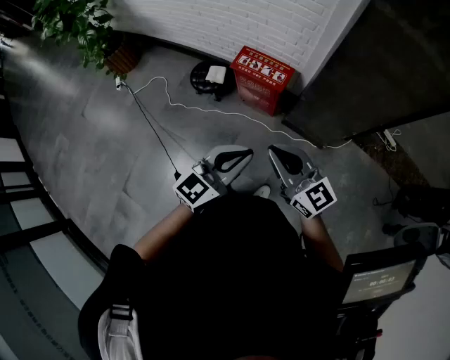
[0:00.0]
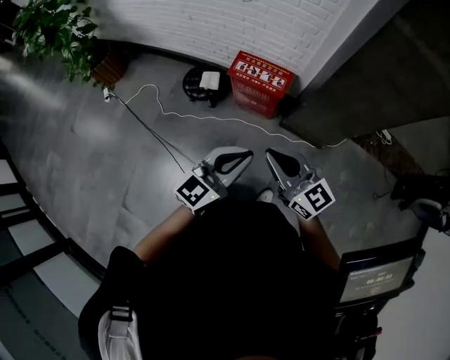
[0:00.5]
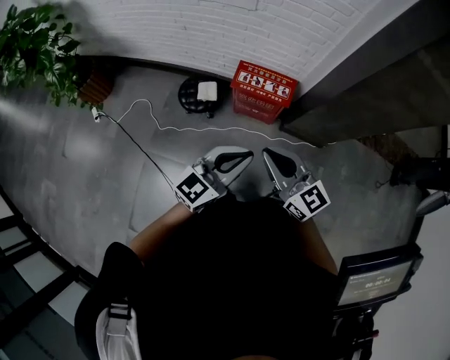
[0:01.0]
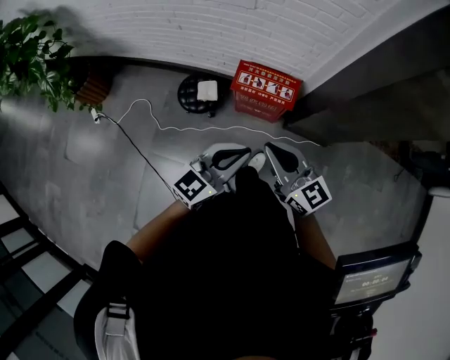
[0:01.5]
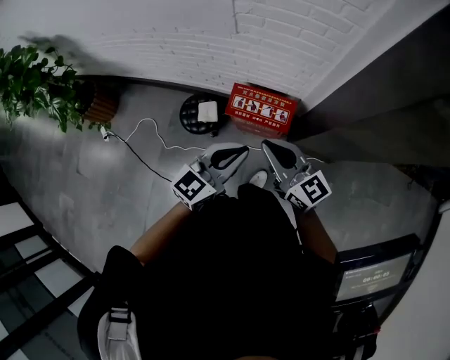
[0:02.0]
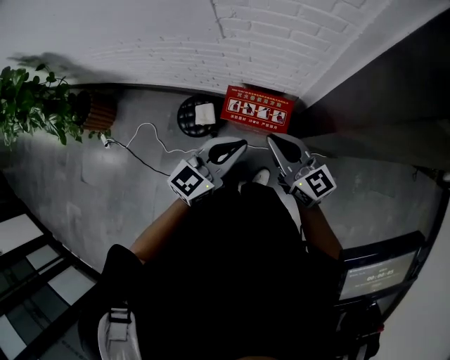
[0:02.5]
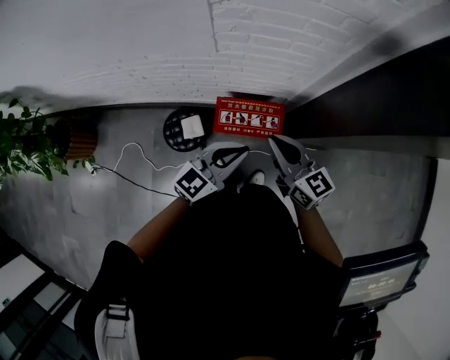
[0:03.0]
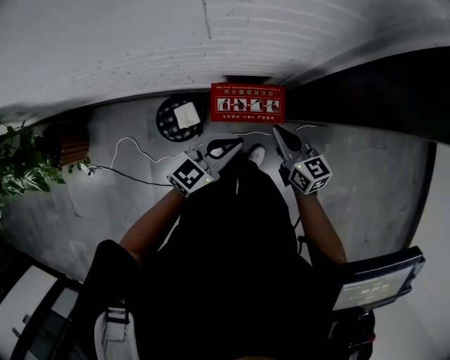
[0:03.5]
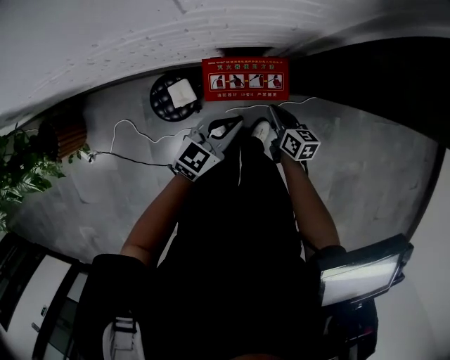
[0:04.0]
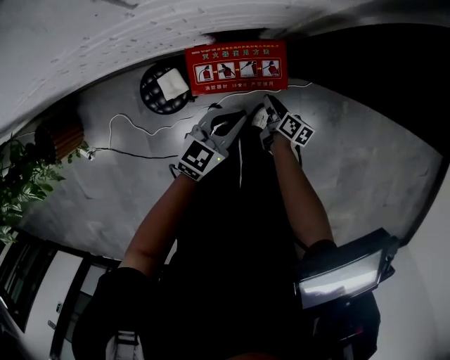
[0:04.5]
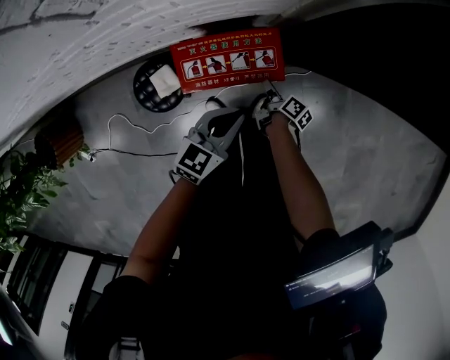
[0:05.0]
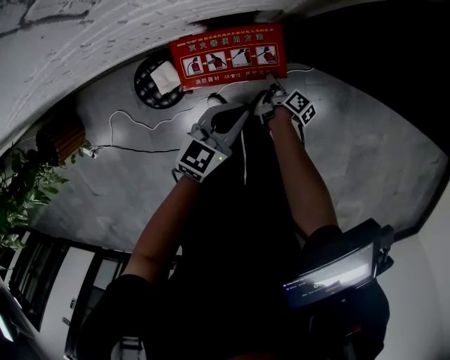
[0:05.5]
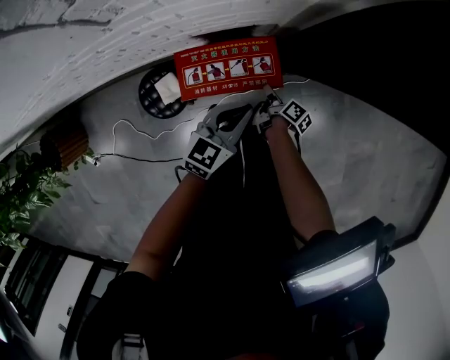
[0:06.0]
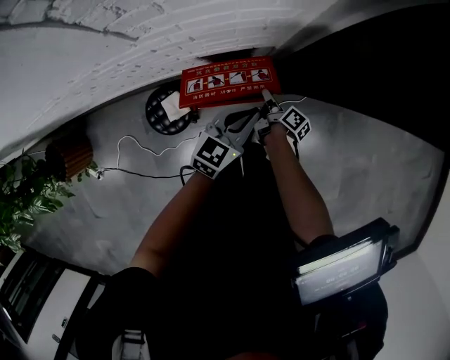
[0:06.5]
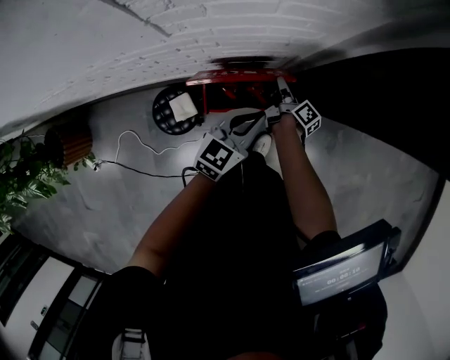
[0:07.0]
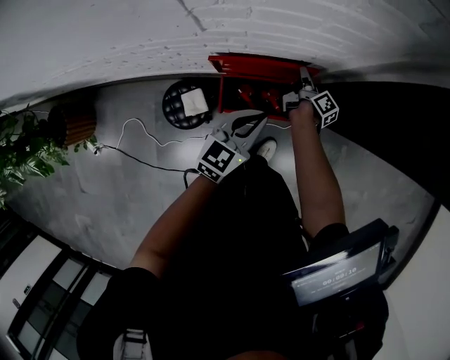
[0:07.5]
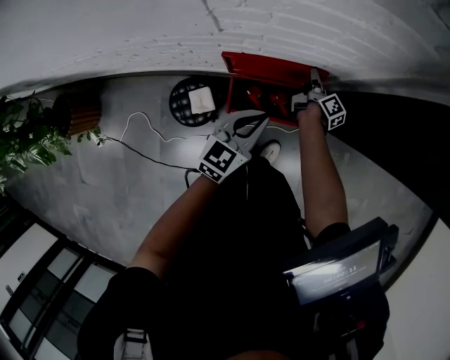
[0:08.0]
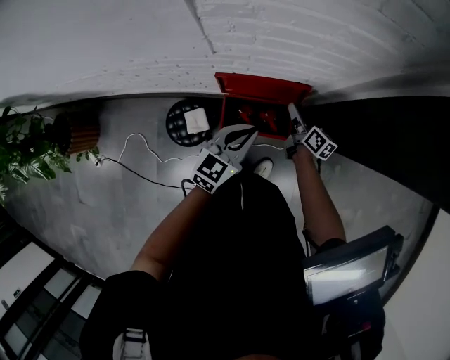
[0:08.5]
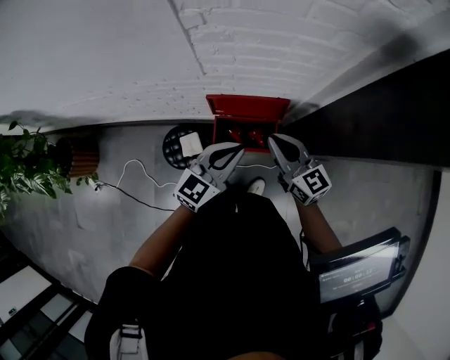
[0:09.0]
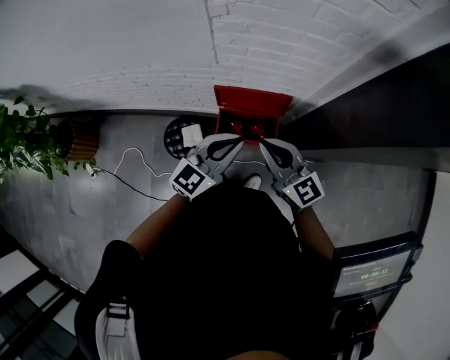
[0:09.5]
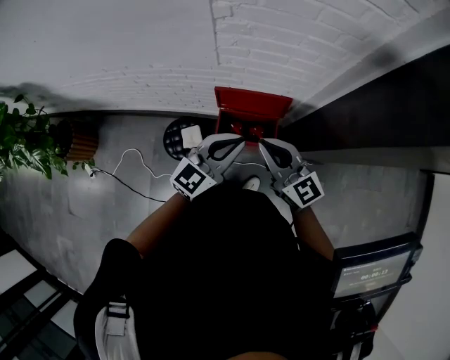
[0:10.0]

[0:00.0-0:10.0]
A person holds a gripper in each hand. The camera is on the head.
0:00.0 to 0:02.0: The left gripper is displaced forward by roughly 35 cm. Meanwhile the right gripper heads forward and to the left, covering approximately 35 cm.
0:02.0 to 0:04.0: The two grippers go roughly 30 cm downward and forward. The left gripper rotates roughly 20 degrees. The right gripper tilts its fingers about 30 degrees downward.
0:04.0 to 0:06.0: The right gripper moves downward, approximately 20 cm, rolls clockwise, seen from behind, by approximately 50 degrees, and opens up. The left gripper shifts some 10 cm to the right and downward.
0:06.0 to 0:08.0: The right gripper is displaced forward and upward by approximately 25 cm, and turns by about 20 degrees. Meanwhile the left gripper moves to the left and upward, some 15 cm.
0:08.0 to 0:10.0: The right gripper goes some 50 cm upward and backward, rotates around the line of its fingers by roughly 70 degrees, counterclockwise from behind, and opens, then closes again; the left gripper heads upward and backward, covering roughly 20 cm.

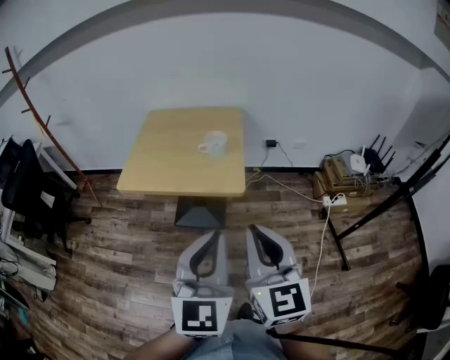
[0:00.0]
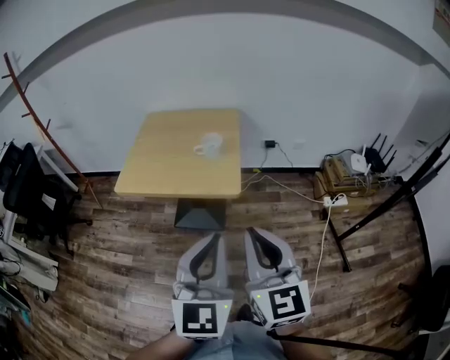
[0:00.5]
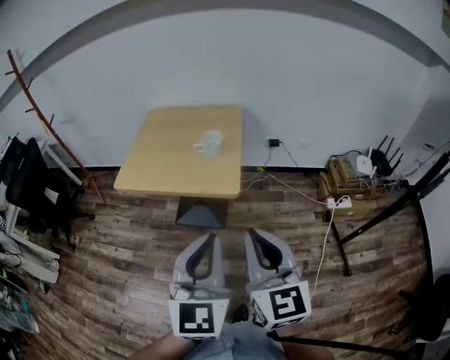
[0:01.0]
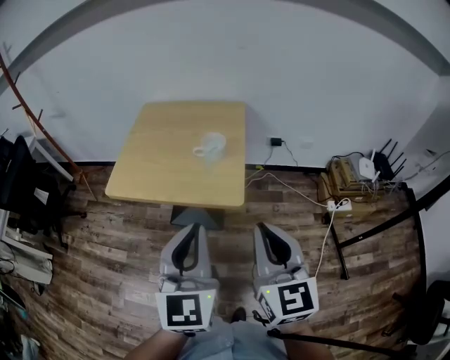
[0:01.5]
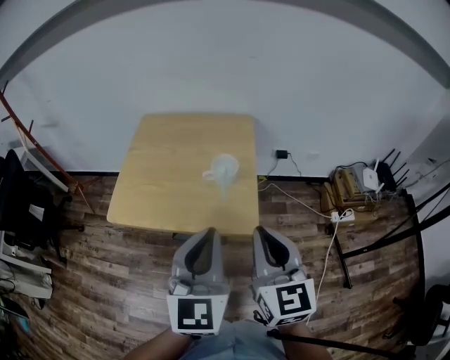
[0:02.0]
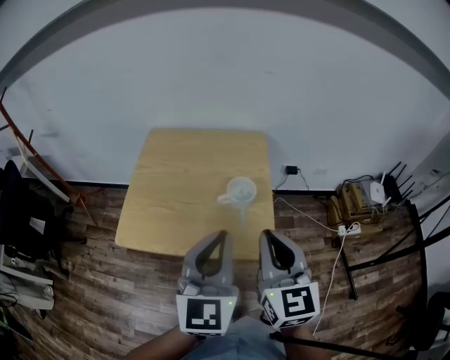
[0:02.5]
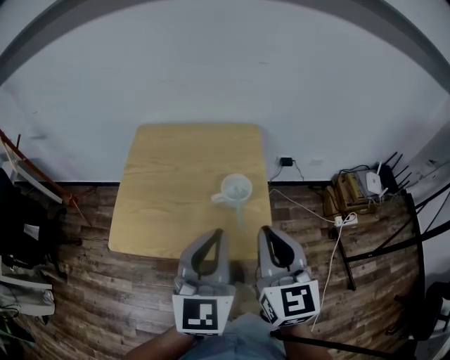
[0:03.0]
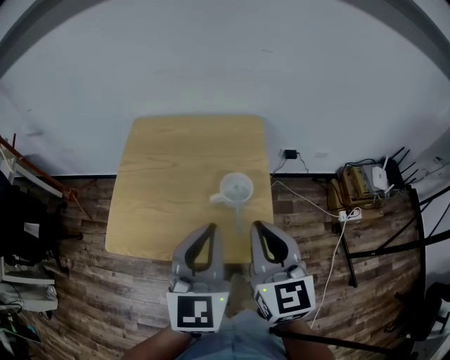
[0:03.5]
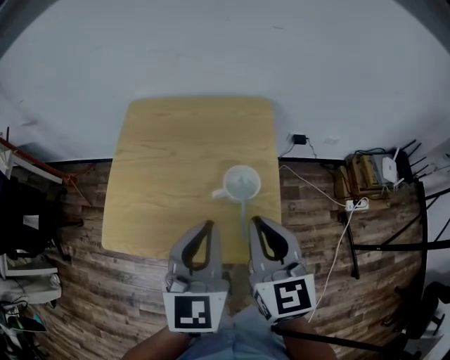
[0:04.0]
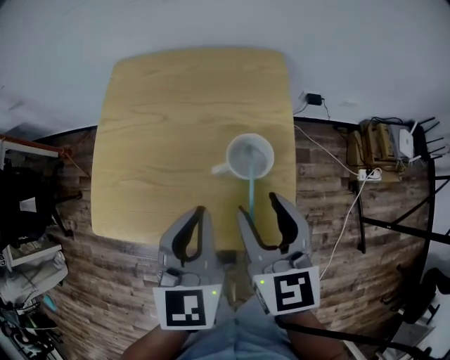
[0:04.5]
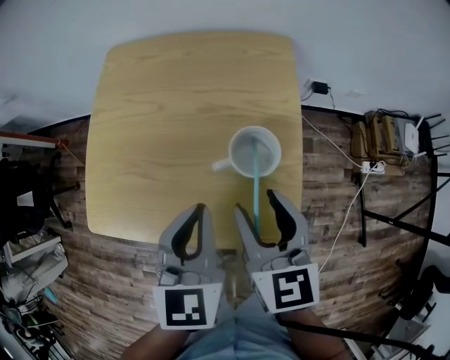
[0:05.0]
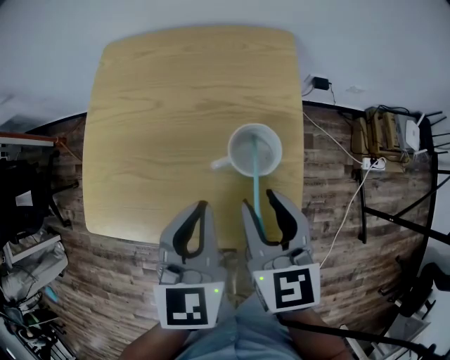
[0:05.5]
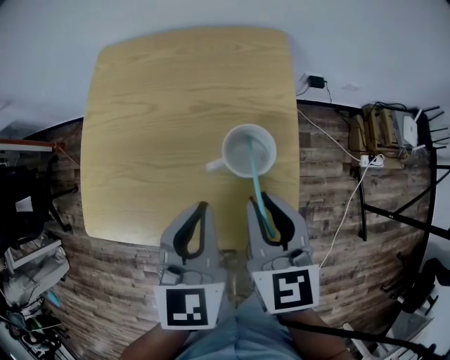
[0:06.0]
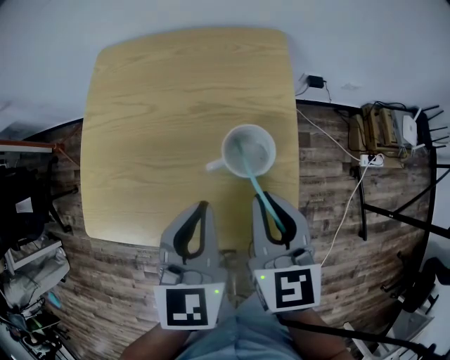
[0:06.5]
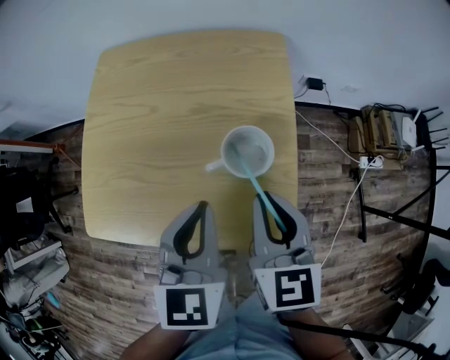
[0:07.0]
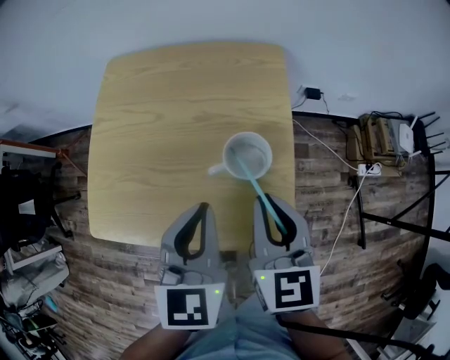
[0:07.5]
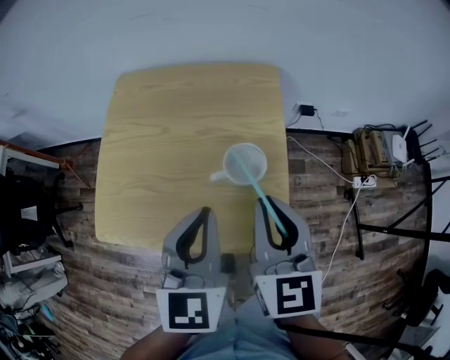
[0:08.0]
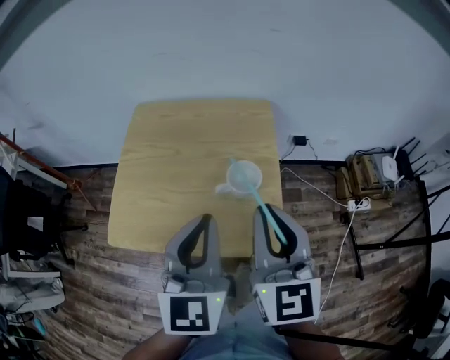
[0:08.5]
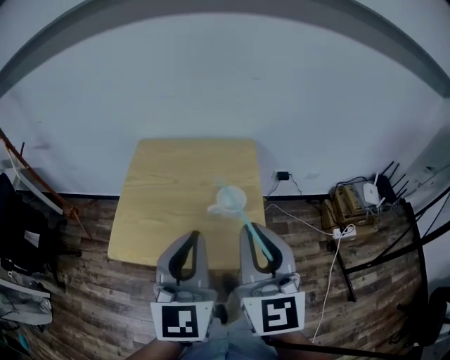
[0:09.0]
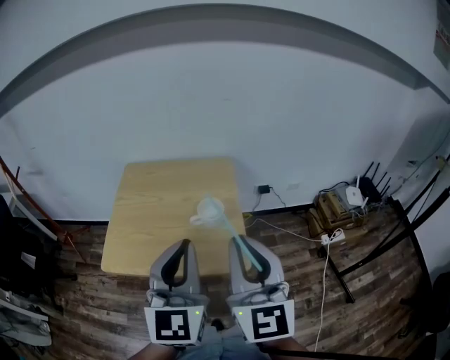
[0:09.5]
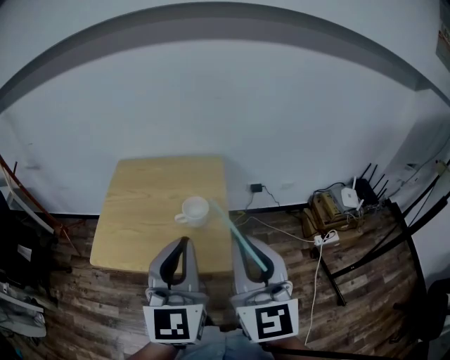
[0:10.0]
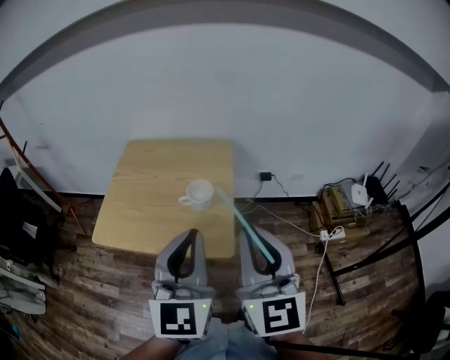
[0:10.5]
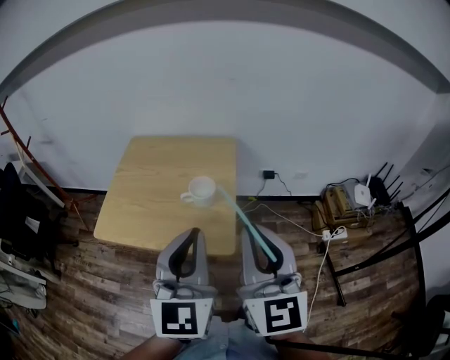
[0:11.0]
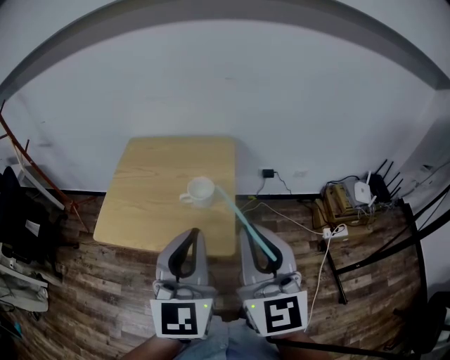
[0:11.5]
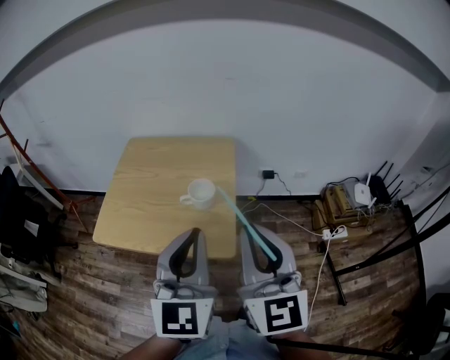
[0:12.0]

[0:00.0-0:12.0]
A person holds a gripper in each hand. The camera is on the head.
0:00.0 to 0:02.0: Both grippers move forward, roughly 20 cm.
0:02.0 to 0:04.0: The two grippers go approximately 15 cm forward.
0:04.0 to 0:06.0: Both grippers travel together downward, approximately 10 cm. The right gripper opens, then closes once more.
0:06.0 to 0:08.0: Both grippers move upward, about 5 cm.
0:08.0 to 0:10.0: The right gripper moves backward, upward and to the right, about 25 cm, and turns by about 30 degrees, while the left gripper heads upward, backward and to the right, covering about 20 cm, and swivels approximately 20 degrees.
0:10.0 to 0:12.0: The grippers stay close to where they were, moving slightly.

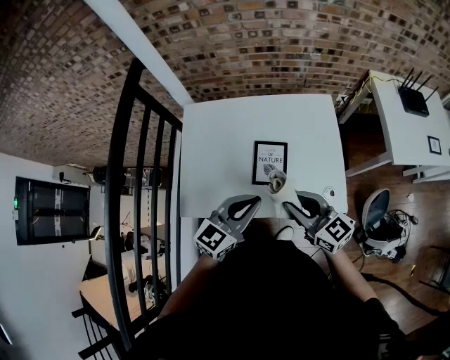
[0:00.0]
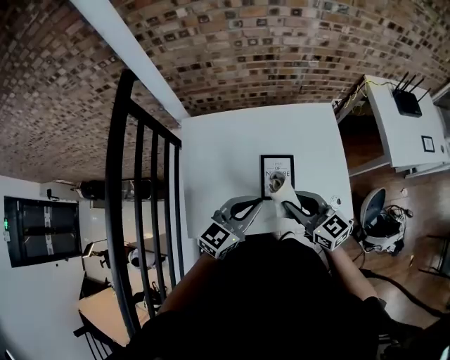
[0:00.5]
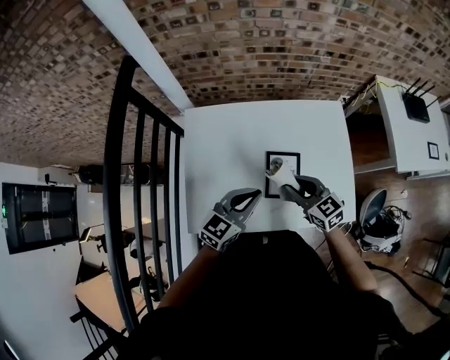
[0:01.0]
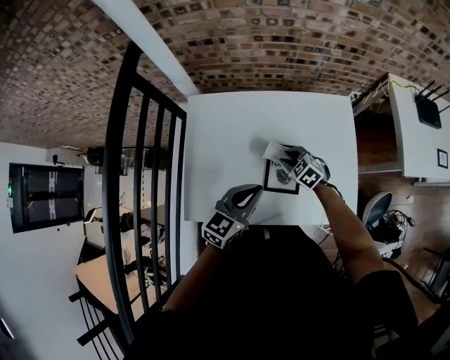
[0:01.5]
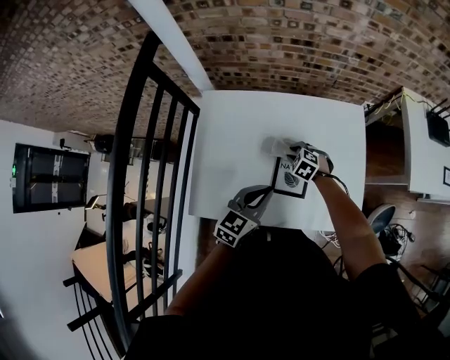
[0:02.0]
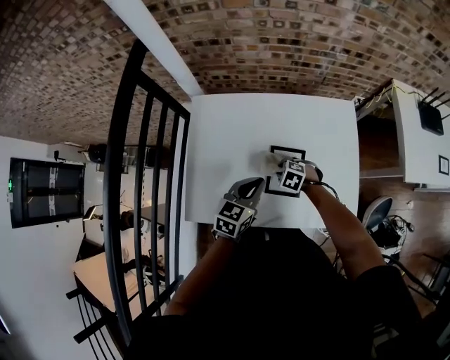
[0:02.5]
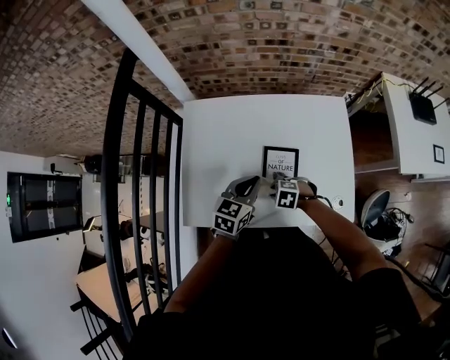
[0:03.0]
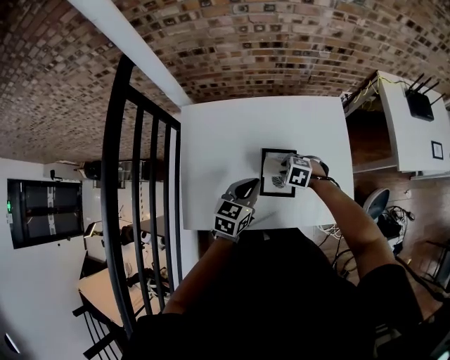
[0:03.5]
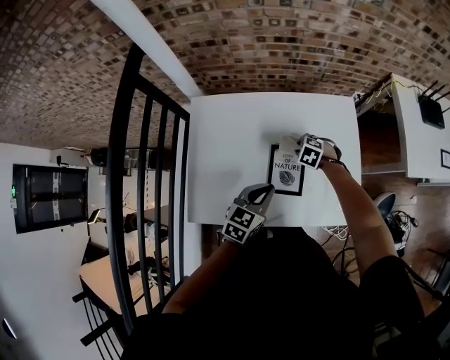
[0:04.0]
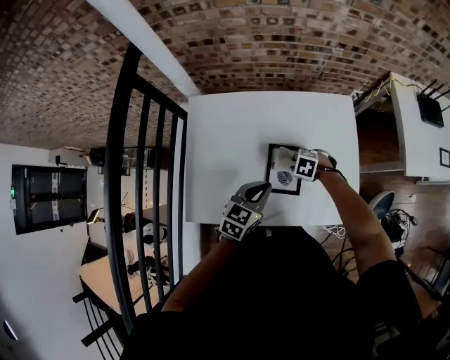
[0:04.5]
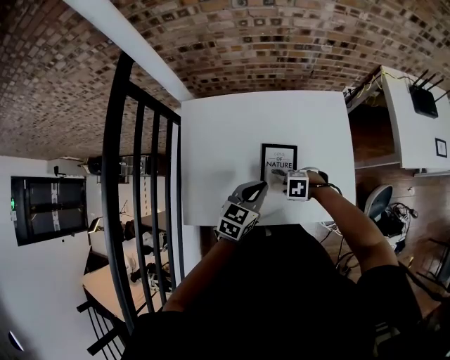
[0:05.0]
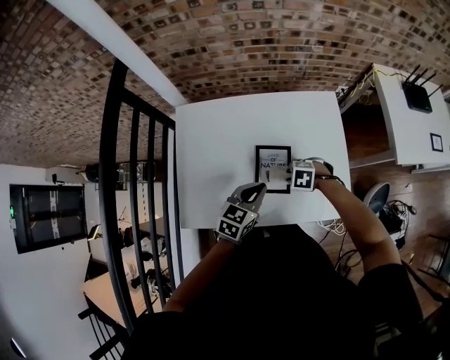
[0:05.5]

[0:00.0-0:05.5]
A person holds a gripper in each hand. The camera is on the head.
0:00.0 to 0:02.0: The left gripper is displaced forward, downward and to the left by about 15 cm; the right gripper heads downward and forward, covering roughly 35 cm, and points its fingers about 60 degrees further downward.
0:03.5 to 0:05.5: The left gripper ends up approximately 5 cm from where it was.
